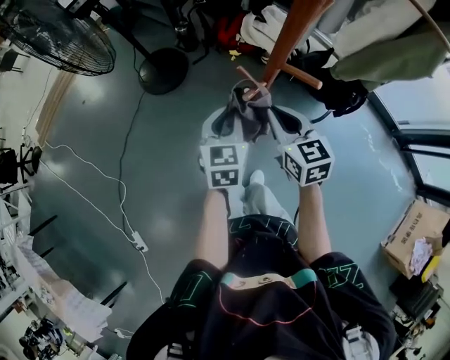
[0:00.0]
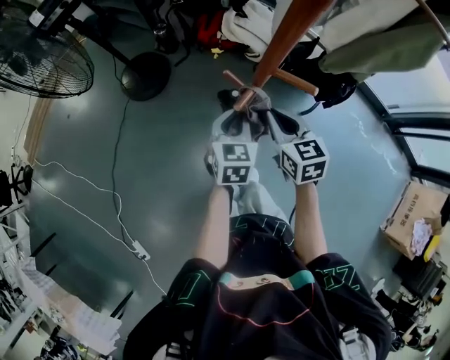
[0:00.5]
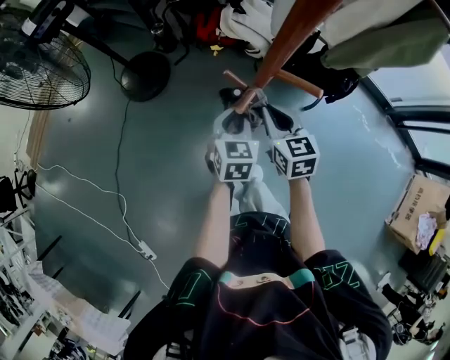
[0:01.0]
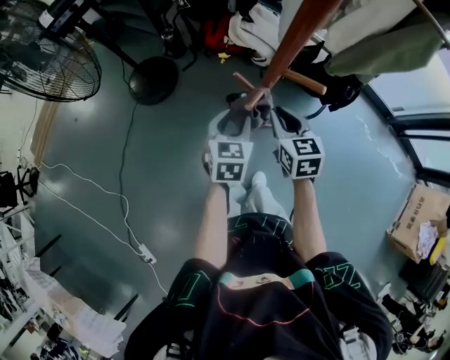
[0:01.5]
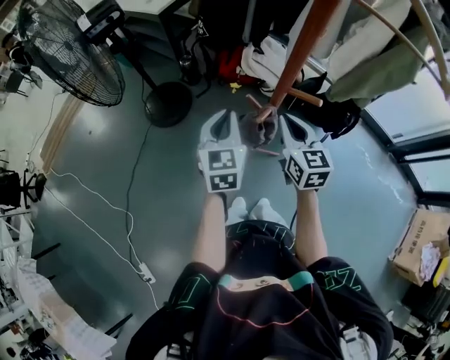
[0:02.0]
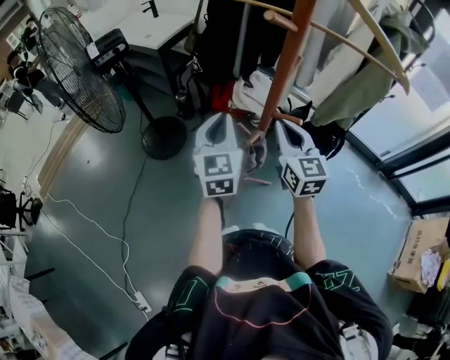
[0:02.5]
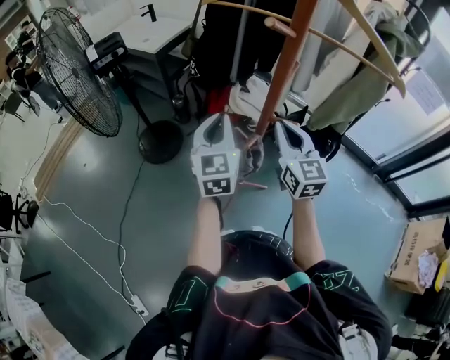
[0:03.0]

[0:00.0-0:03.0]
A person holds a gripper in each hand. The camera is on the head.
0:00.0 to 0:01.5: The right gripper goes about 5 cm downward, while the left gripper opens its fingers.
0:01.5 to 0:03.0: The grippers both shift upward by some 20 cm. The left gripper rotates approximately 30 degrees, and closes. The right gripper swivels about 30 degrees.

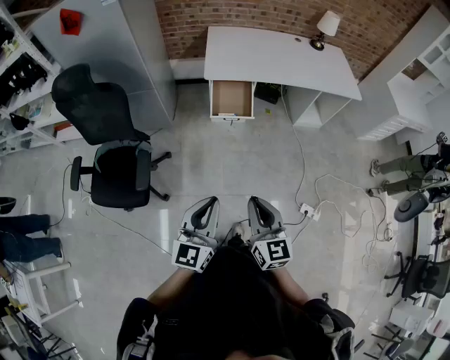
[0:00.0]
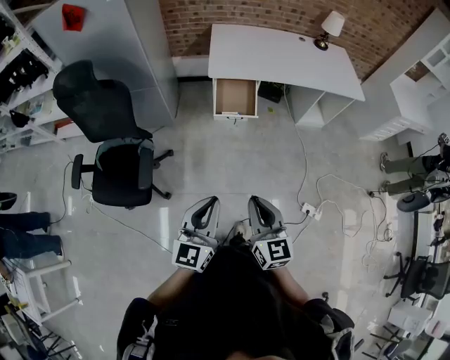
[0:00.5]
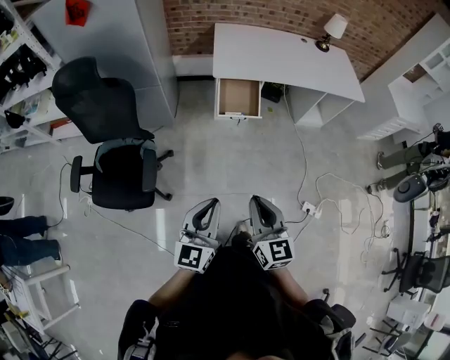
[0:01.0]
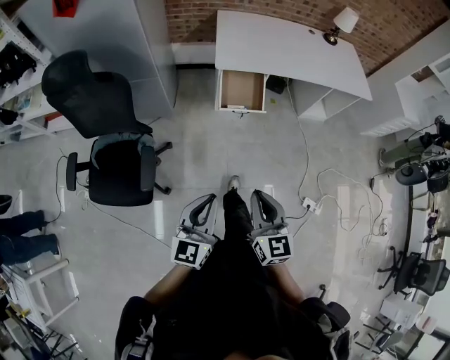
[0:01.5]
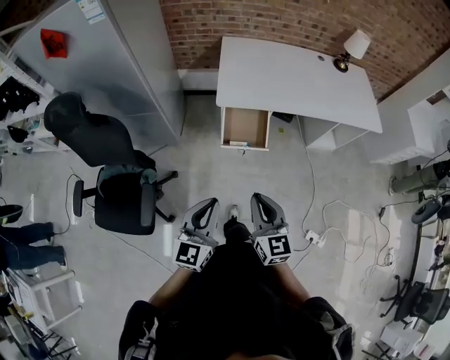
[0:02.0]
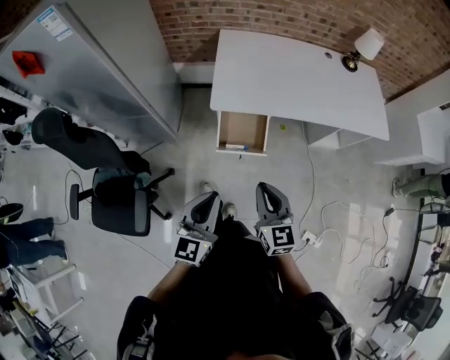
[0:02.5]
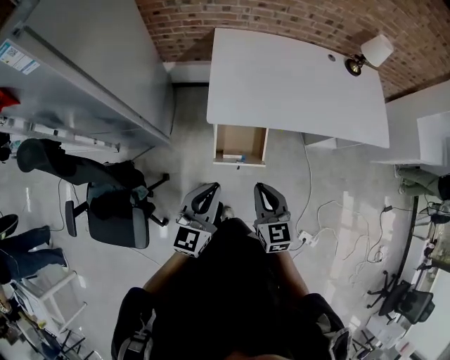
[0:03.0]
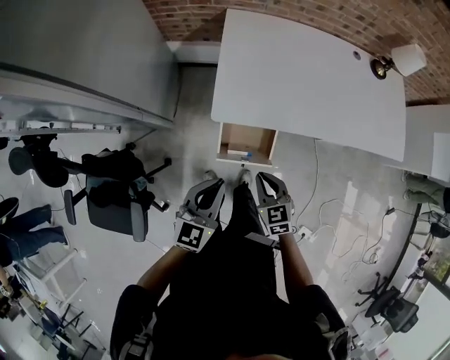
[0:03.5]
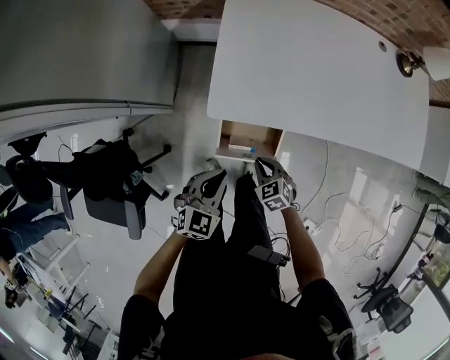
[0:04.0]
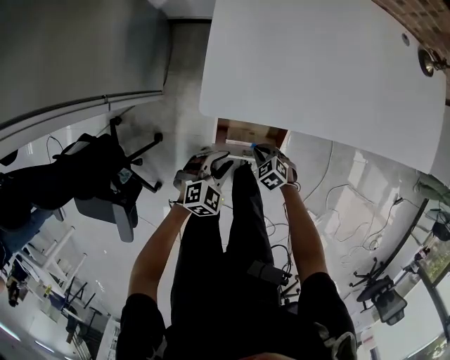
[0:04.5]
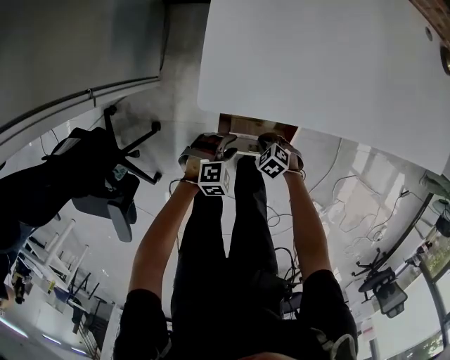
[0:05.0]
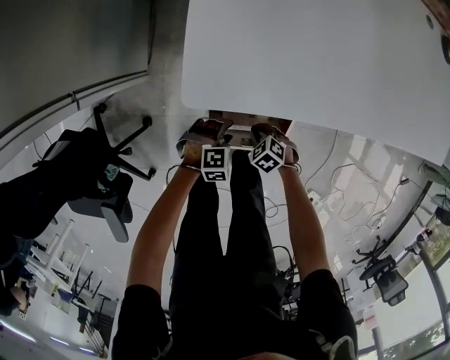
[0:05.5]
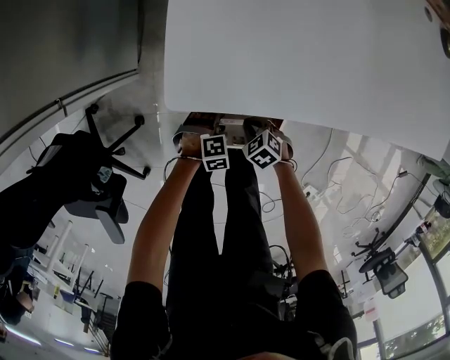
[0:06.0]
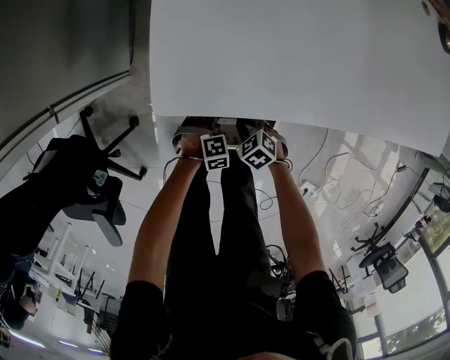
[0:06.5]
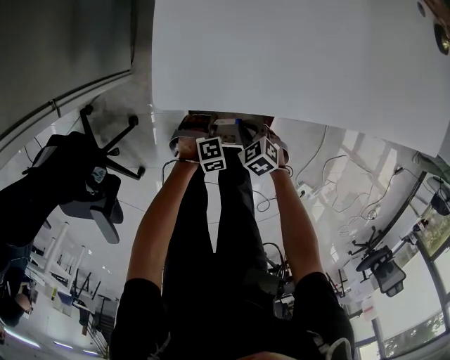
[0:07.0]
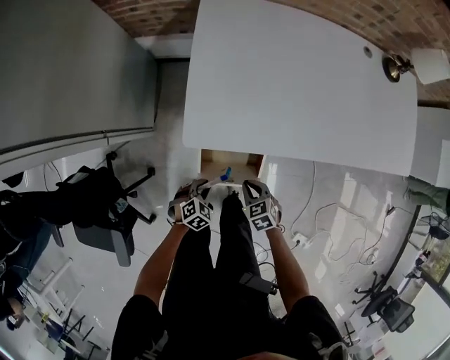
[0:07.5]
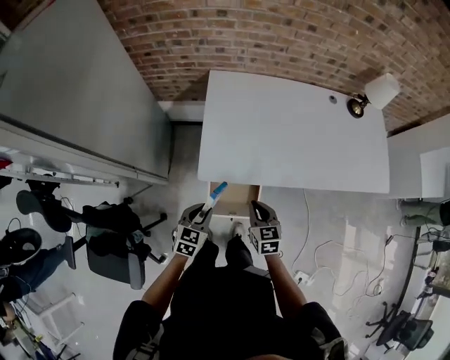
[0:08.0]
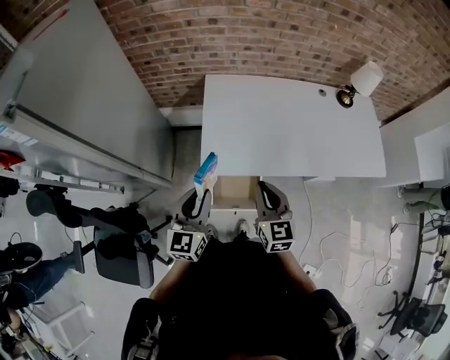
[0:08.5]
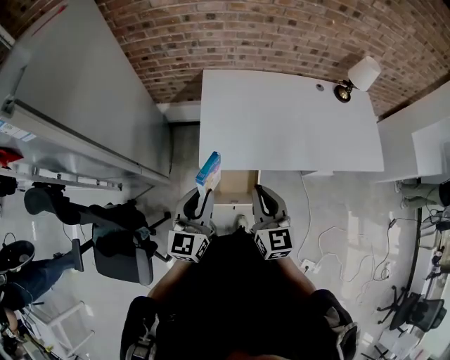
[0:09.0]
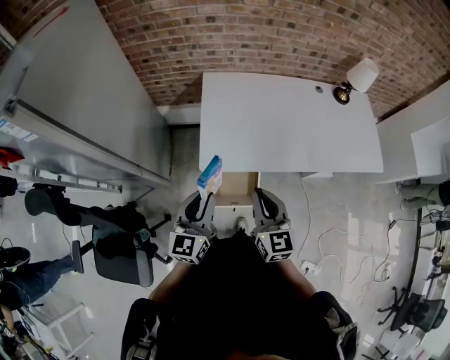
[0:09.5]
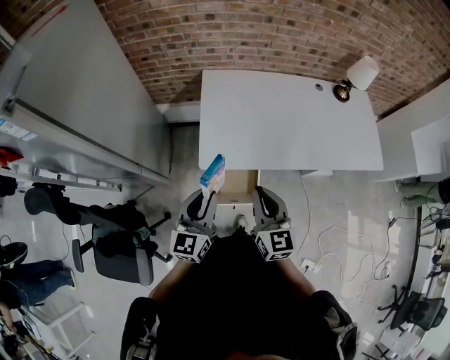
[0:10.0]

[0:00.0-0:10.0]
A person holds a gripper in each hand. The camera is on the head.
0:00.0 to 0:02.0: Both grippers move forward, roughly 25 cm.
0:02.0 to 0:04.0: The grippers both shift forward and downward by some 50 cm. The right gripper angles its fingers downward, by approximately 40 degrees. The left gripper rotates some 30 degrees.
0:04.0 to 0:06.0: The right gripper goes some 25 cm downward, and rotates approximately 20 degrees. Meanwhile the left gripper travels downward by approximately 40 cm, points its fingers approximately 40 degrees further downward, and opens its fingers.
0:06.0 to 0:08.0: The grippers both shift upward by about 40 cm. The left gripper tilts its fingers roughly 40 degrees upward, and closes its fingers, while the right gripper points its fingers about 30 degrees further upward.
0:08.0 to 0:10.0: The two grippers go some 20 cm upward. The right gripper rotates some 30 degrees. The left gripper points its fingers some 30 degrees further upward.

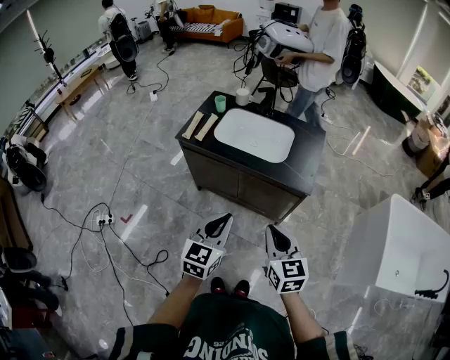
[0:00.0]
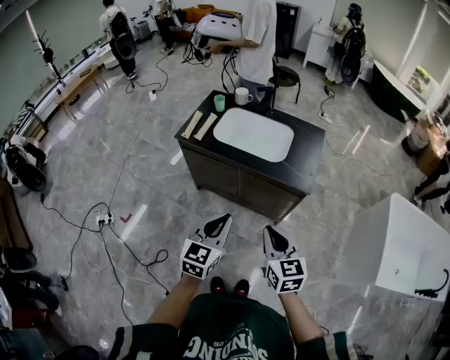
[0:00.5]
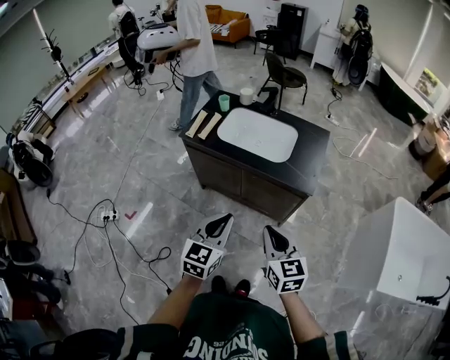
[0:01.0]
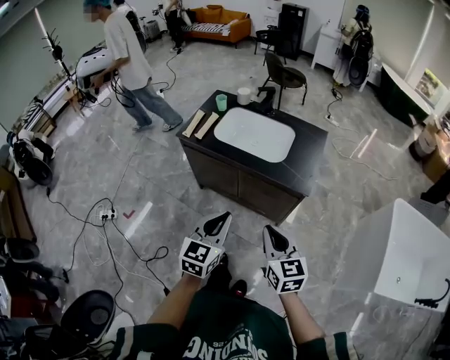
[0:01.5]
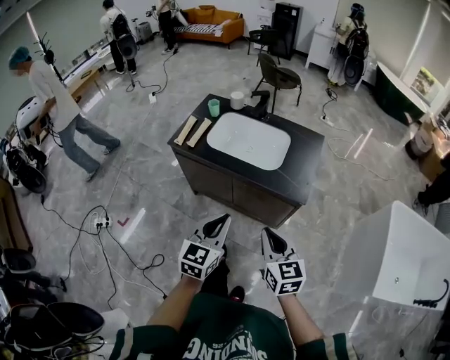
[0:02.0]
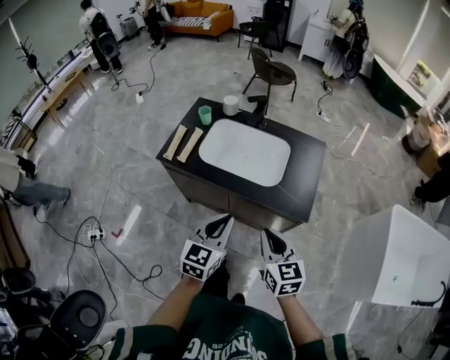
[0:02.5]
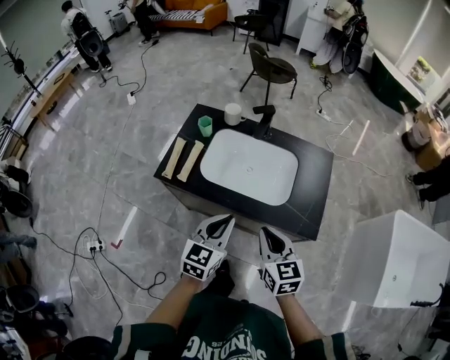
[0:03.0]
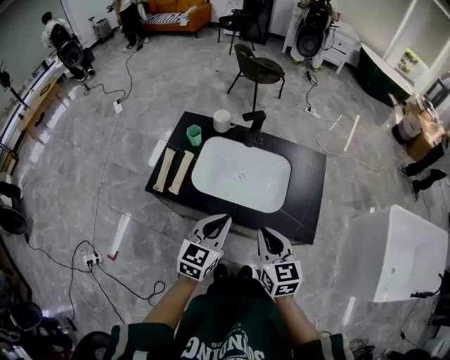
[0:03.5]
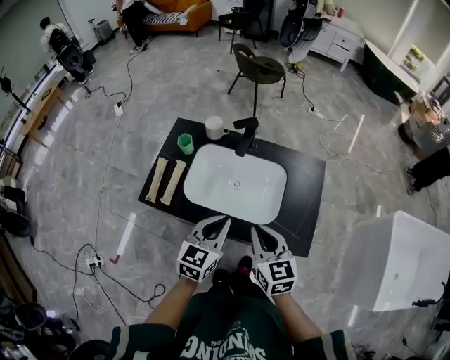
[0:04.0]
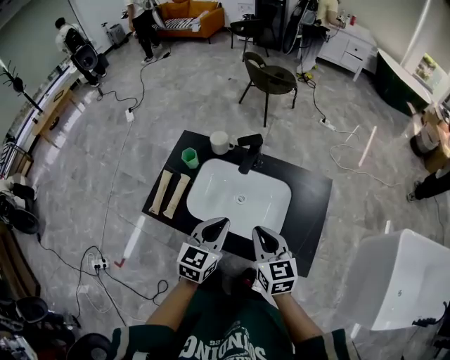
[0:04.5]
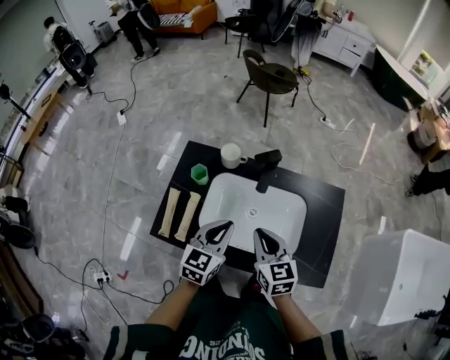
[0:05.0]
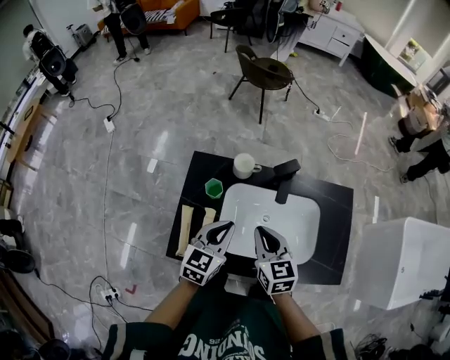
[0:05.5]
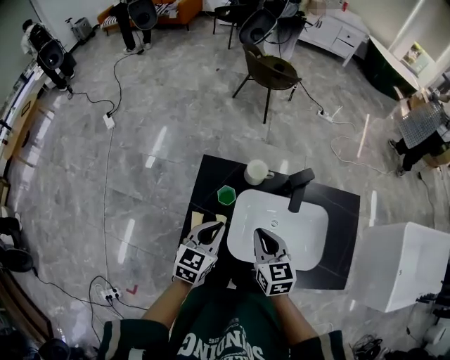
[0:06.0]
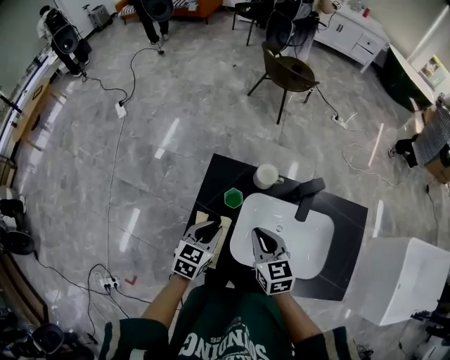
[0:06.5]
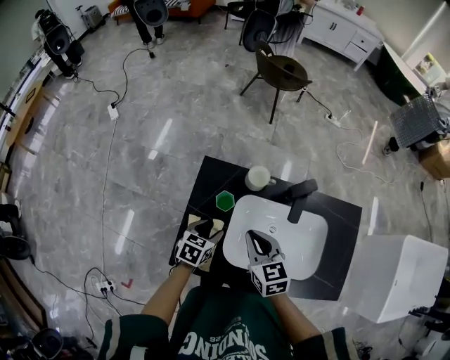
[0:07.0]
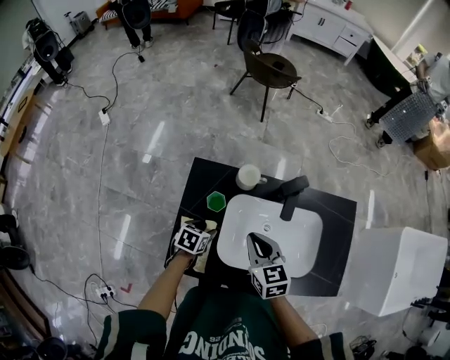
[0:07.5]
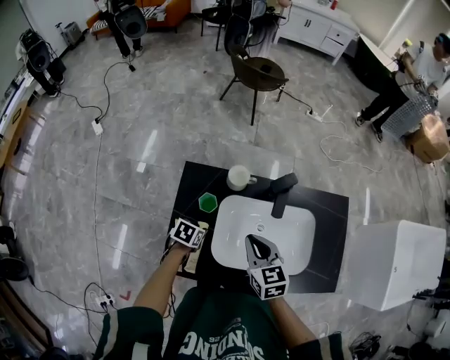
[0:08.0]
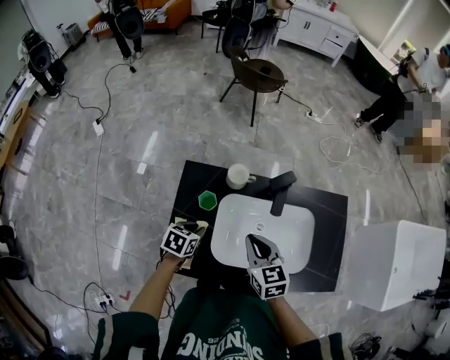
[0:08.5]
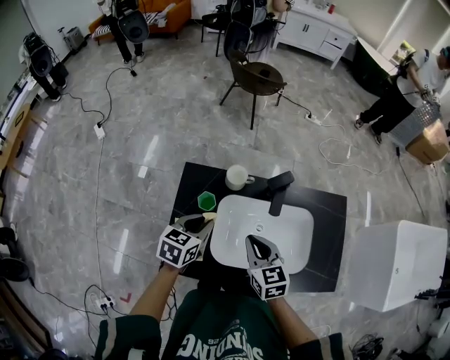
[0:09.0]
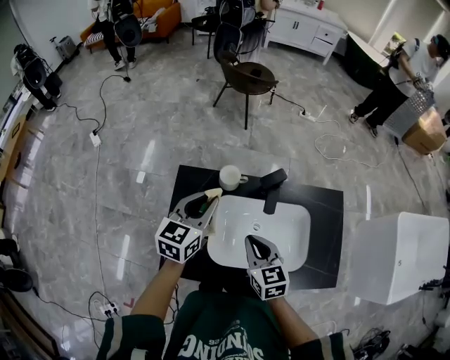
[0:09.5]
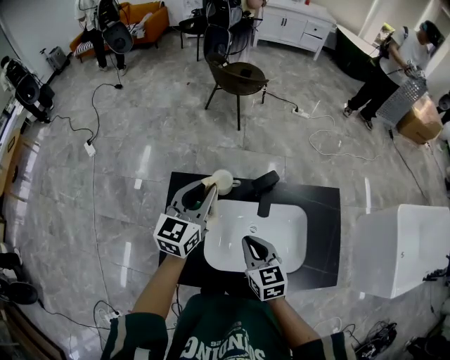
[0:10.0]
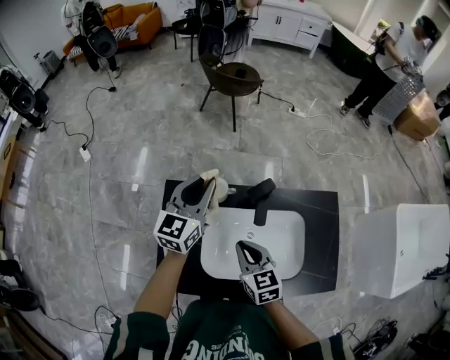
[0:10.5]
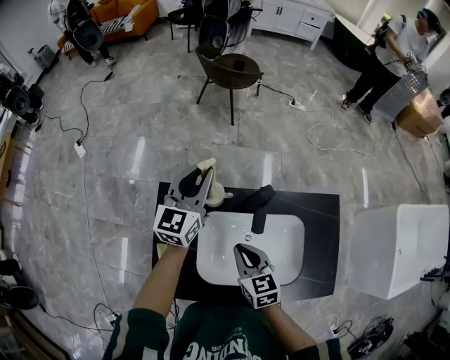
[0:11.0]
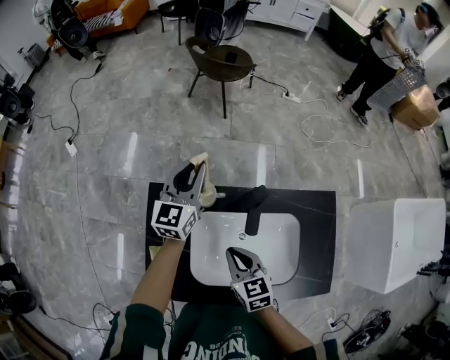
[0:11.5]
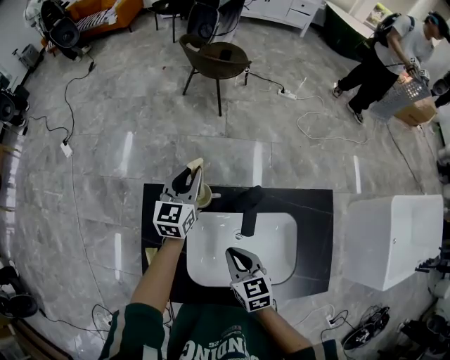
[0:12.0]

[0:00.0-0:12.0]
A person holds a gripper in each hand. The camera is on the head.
0:00.0 to 0:02.0: The right gripper changes place by some 5 cm, while the left gripper heads forward, covering approximately 5 cm.
0:02.0 to 0:04.0: The two grippers go about 30 cm forward.
0:04.0 to 0:06.0: Both grippers move to the left and forward, about 30 cm.
0:06.0 to 0:08.0: The left gripper moves downward, roughly 20 cm, tips its fingers downward by about 40 degrees, and opens its fingers.
0:08.0 to 0:10.0: The left gripper shifts about 35 cm upward and forward, and angles its fingers upward, by roughly 50 degrees.
0:10.0 to 0:12.0: The right gripper heads downward, covering some 5 cm. The left gripper travels forward and downward by approximately 20 cm.

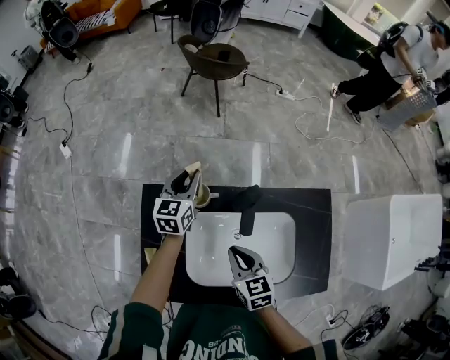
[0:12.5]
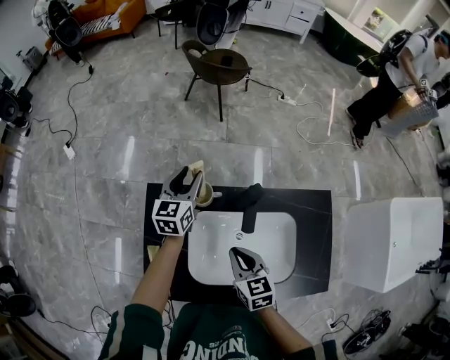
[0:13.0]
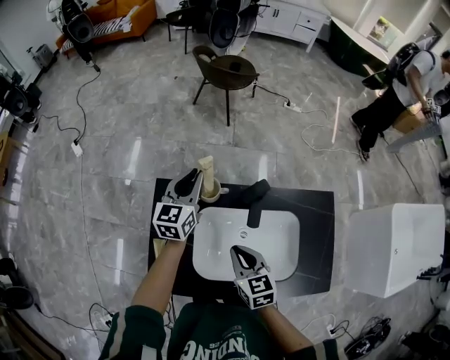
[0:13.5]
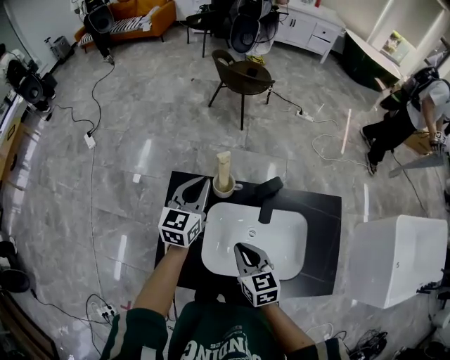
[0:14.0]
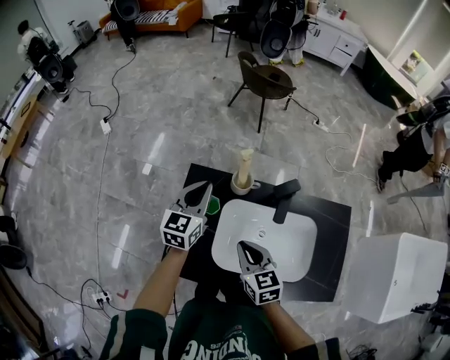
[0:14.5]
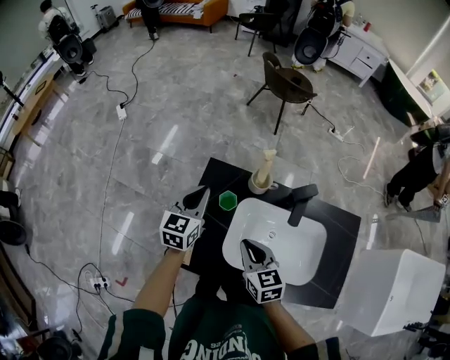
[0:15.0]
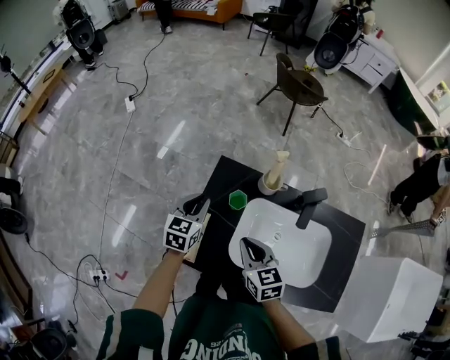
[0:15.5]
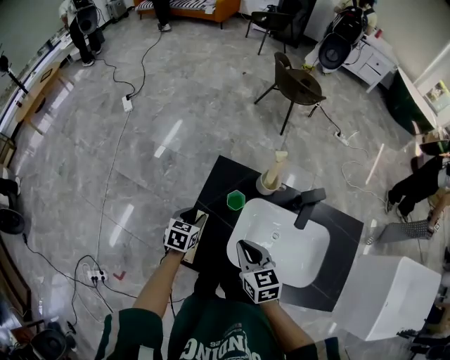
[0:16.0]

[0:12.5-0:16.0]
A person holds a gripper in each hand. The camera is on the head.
0:12.5 to 0:14.5: The left gripper shifts approximately 20 cm backward, to the left and upward, while the right gripper heads to the left, covering roughly 10 cm.
0:14.5 to 0:16.0: The left gripper heads downward, to the left and backward, covering approximately 25 cm, tips its fingers downward by roughly 30 degrees, and opens its fingers. Meanwhile the right gripper is displaced to the left by about 10 cm.
